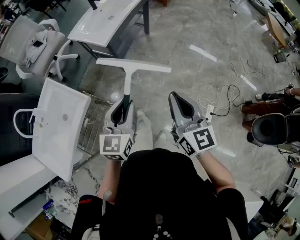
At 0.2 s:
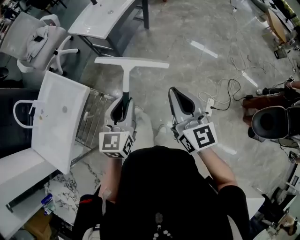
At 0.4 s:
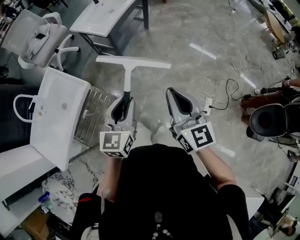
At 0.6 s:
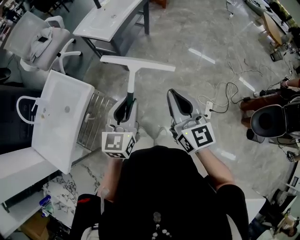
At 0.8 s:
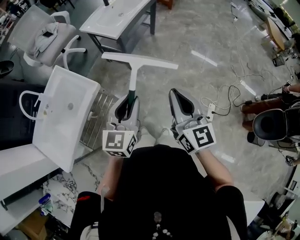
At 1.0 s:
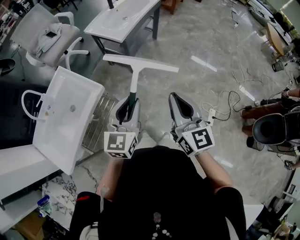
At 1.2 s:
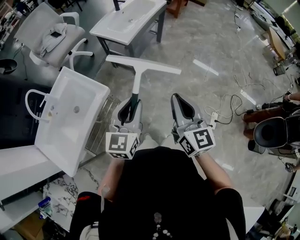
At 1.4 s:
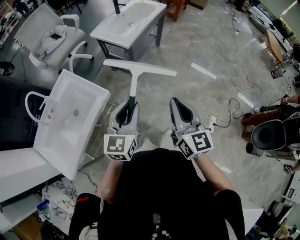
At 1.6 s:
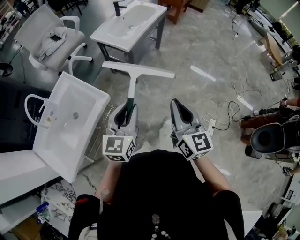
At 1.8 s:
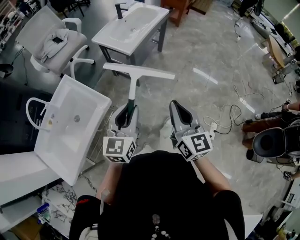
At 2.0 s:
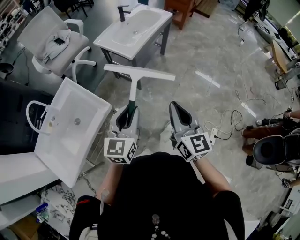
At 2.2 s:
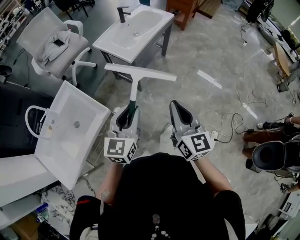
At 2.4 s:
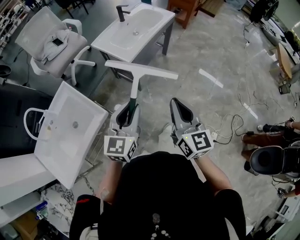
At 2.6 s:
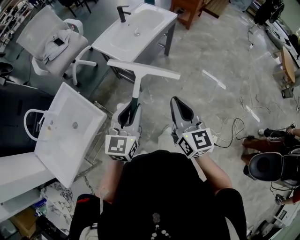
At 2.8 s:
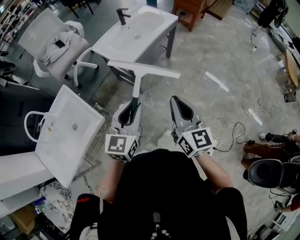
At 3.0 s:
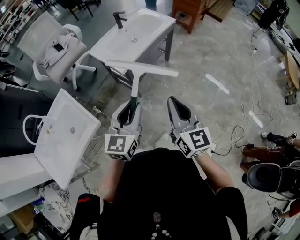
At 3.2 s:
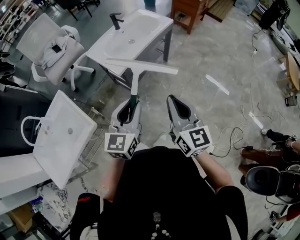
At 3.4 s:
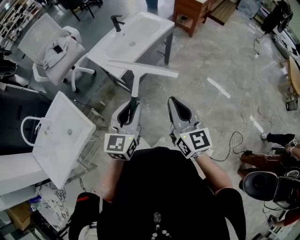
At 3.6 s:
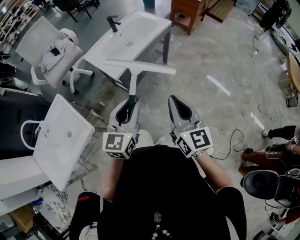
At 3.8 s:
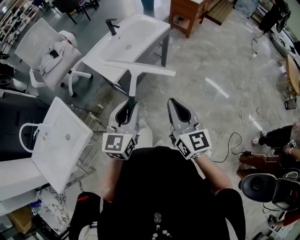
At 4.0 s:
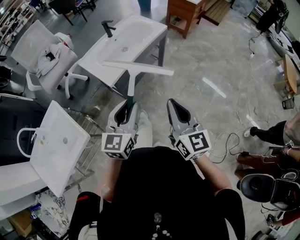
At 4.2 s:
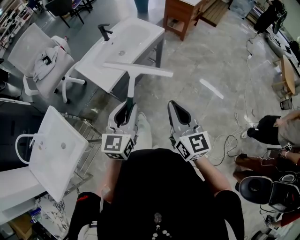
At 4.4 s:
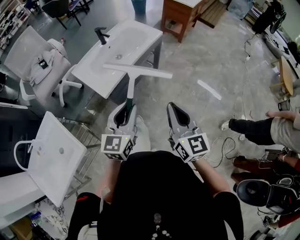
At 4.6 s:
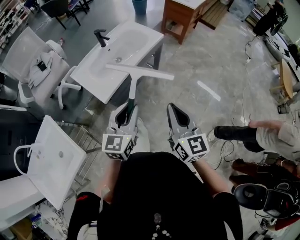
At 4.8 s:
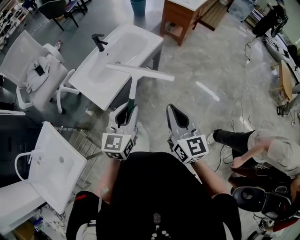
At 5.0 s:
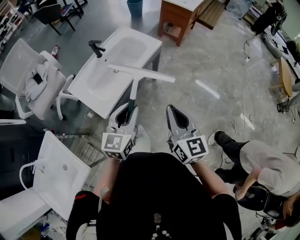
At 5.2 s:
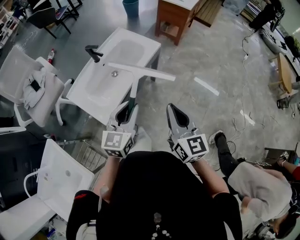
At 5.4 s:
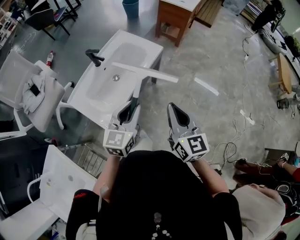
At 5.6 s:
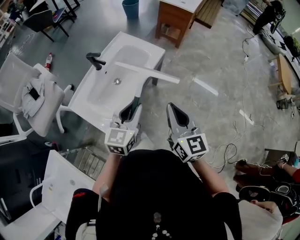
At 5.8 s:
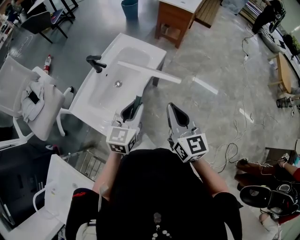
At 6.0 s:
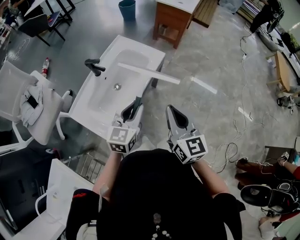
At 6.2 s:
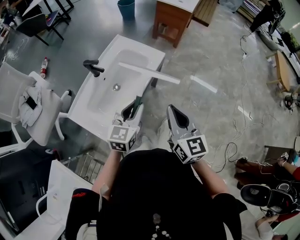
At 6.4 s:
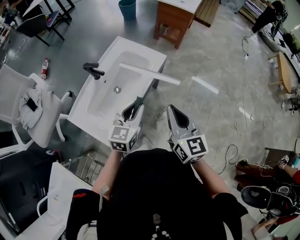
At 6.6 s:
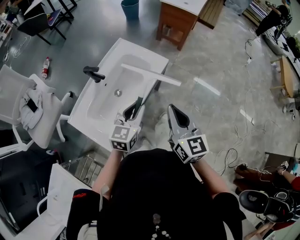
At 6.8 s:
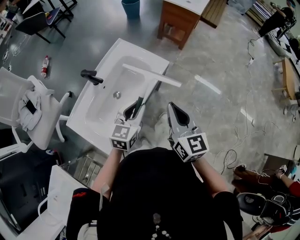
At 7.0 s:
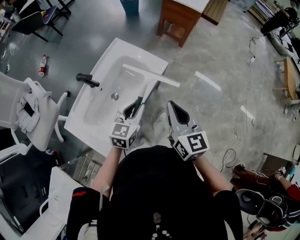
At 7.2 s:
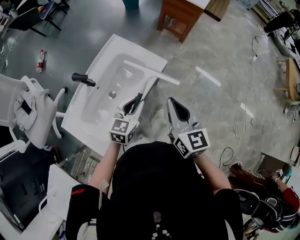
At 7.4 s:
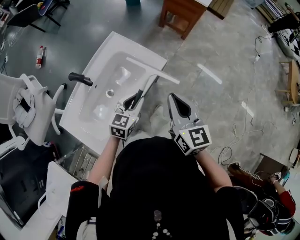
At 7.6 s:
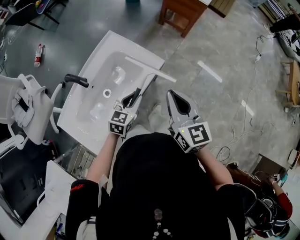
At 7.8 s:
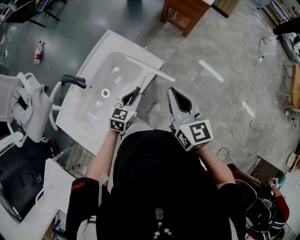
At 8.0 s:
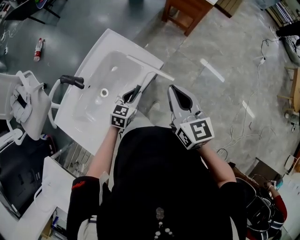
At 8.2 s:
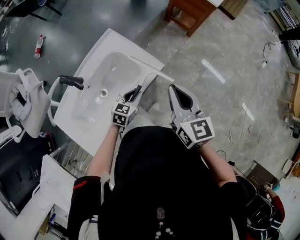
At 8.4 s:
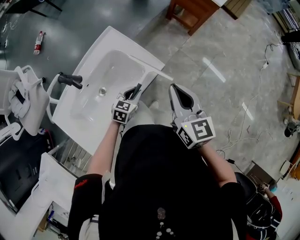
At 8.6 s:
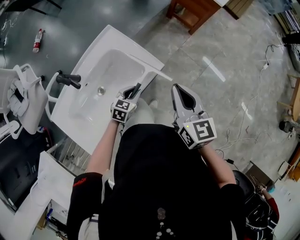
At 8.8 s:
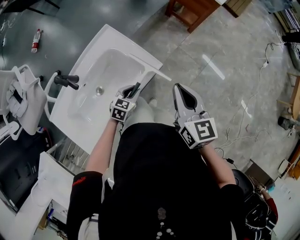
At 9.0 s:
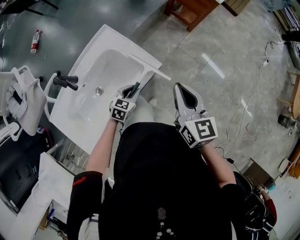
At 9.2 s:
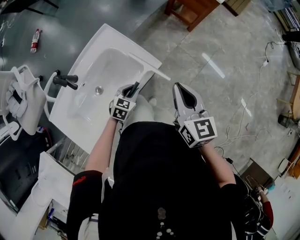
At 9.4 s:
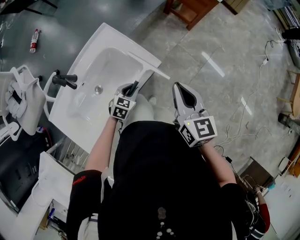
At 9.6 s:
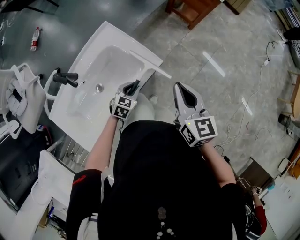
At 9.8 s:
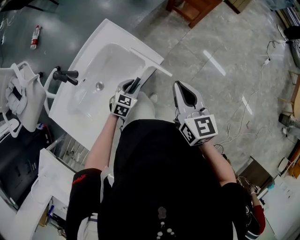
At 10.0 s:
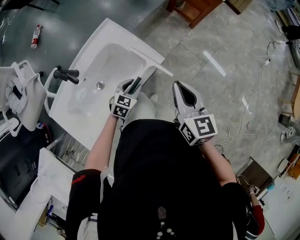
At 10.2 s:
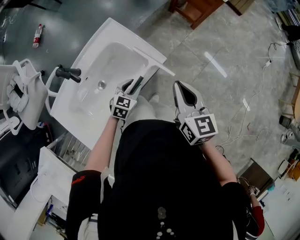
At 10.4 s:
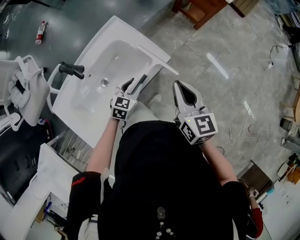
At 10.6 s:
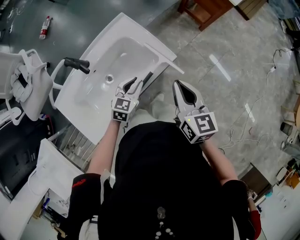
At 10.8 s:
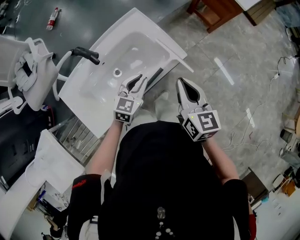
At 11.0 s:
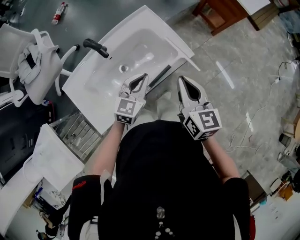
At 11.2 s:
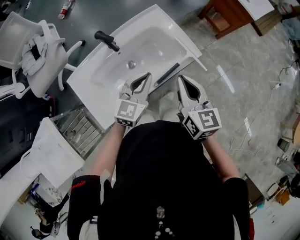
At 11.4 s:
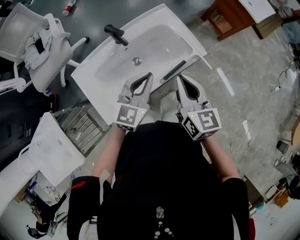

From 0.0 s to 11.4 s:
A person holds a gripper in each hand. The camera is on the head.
From 0.0 s to 1.4 s: The two grippers go about 15 cm to the left and backward.
From 1.4 s to 2.8 s: The right gripper shifts approximately 20 cm forward. Meanwhile the left gripper travels forward and to the right by about 20 cm.
From 2.8 s to 4.2 s: Both grippers move forward and to the right, about 15 cm.
From 4.2 s to 5.6 s: Both grippers move forward, some 30 cm.
From 5.6 s to 7.2 s: The right gripper goes roughly 20 cm forward; the left gripper travels forward and downward by some 25 cm.
From 7.2 s to 8.6 s: The left gripper goes approximately 20 cm downward and forward. Meanwhile the right gripper is displaced forward by roughly 15 cm.
From 8.6 s to 10.0 s: The grippers make only small movements.
From 10.0 s to 11.4 s: The left gripper shifts roughly 25 cm upward and to the left, angles its fingers upward, by approximately 30 degrees, and closes its fingers. The right gripper goes about 20 cm to the left and backward.

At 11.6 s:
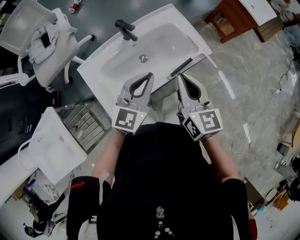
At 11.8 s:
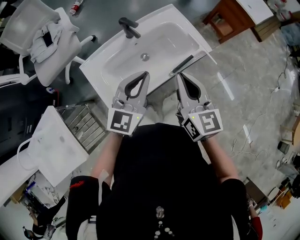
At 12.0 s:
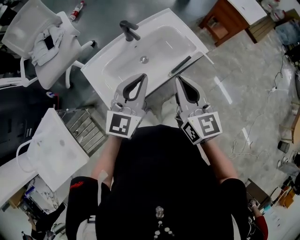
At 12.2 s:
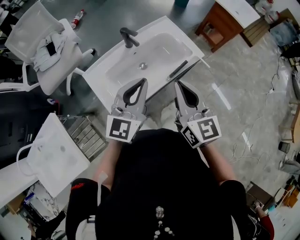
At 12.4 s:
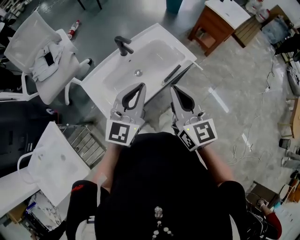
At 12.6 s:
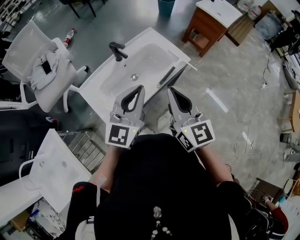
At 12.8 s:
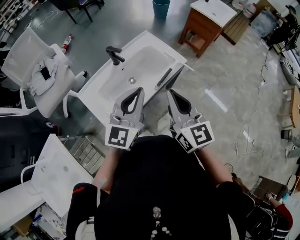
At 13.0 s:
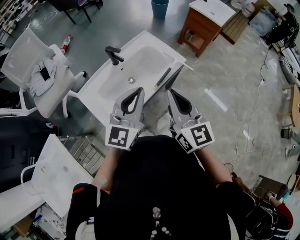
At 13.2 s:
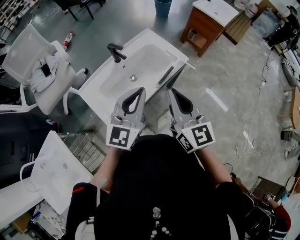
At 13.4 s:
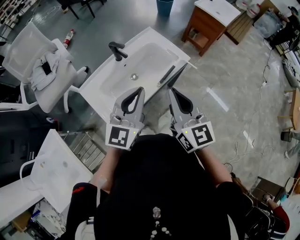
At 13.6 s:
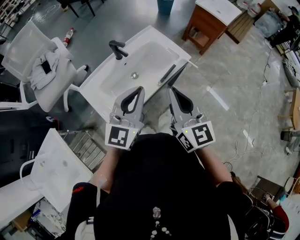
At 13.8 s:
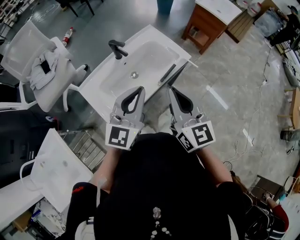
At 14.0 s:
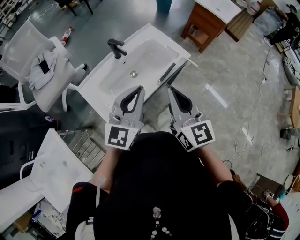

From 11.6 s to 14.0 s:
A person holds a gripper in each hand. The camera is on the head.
From 11.6 s to 12.8 s: The right gripper goes roughly 15 cm backward and upward; the left gripper moves upward and backward, approximately 15 cm.
From 12.8 s to 14.0 s: The grippers make only small movements.

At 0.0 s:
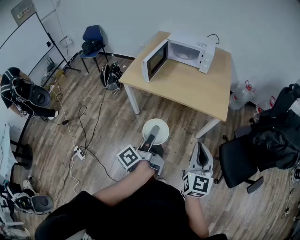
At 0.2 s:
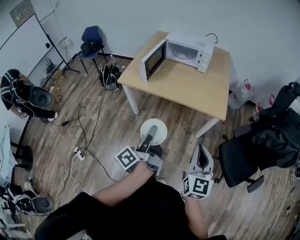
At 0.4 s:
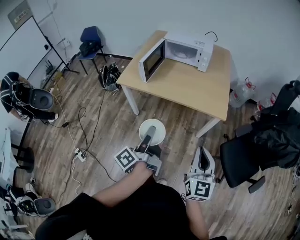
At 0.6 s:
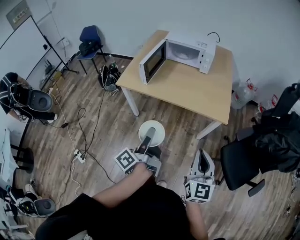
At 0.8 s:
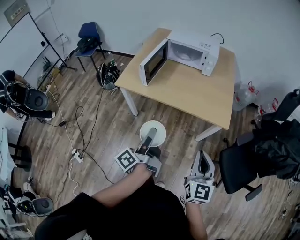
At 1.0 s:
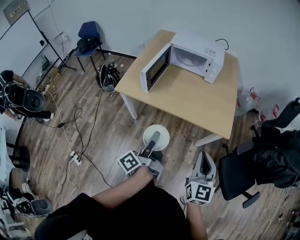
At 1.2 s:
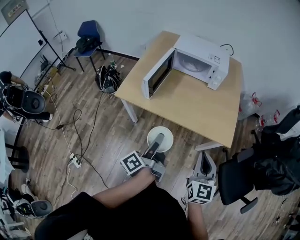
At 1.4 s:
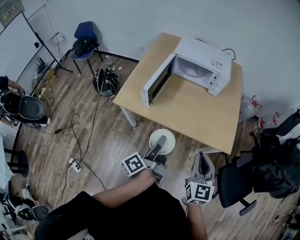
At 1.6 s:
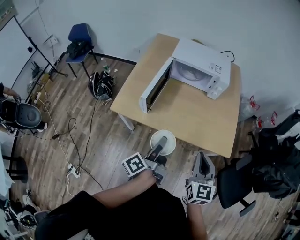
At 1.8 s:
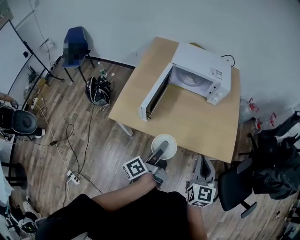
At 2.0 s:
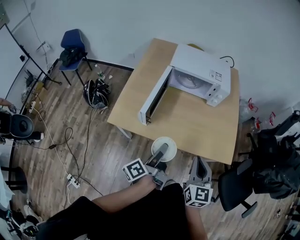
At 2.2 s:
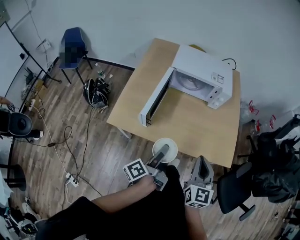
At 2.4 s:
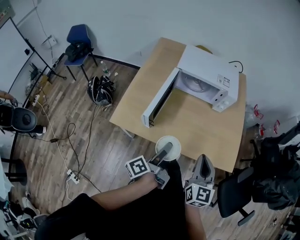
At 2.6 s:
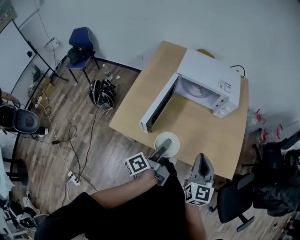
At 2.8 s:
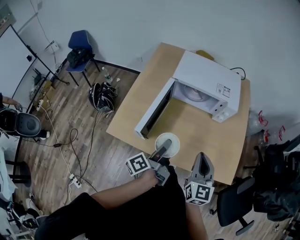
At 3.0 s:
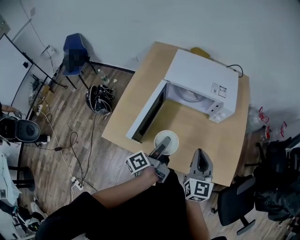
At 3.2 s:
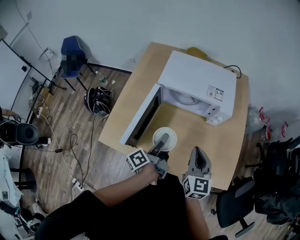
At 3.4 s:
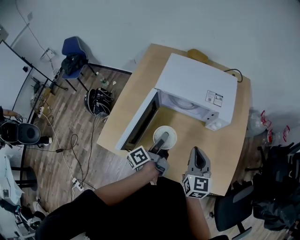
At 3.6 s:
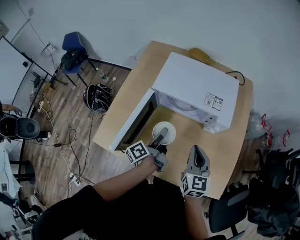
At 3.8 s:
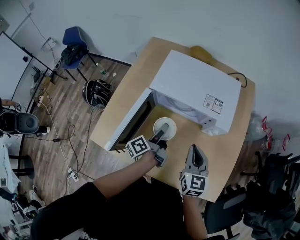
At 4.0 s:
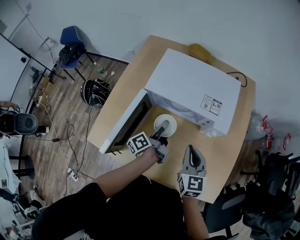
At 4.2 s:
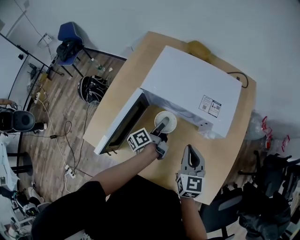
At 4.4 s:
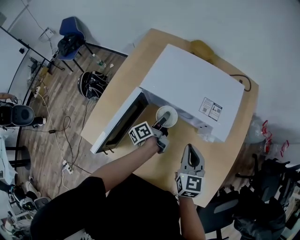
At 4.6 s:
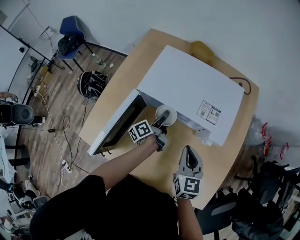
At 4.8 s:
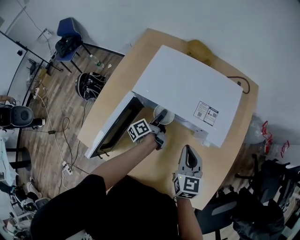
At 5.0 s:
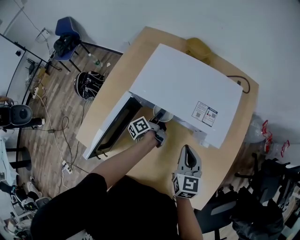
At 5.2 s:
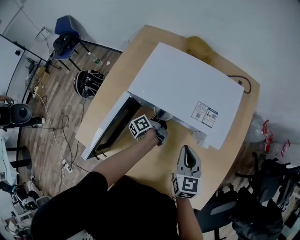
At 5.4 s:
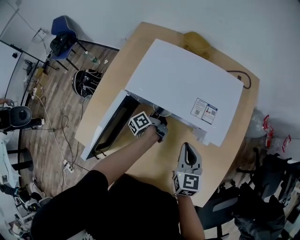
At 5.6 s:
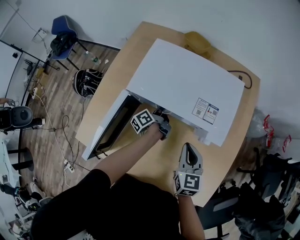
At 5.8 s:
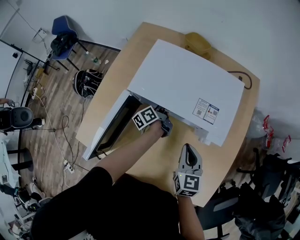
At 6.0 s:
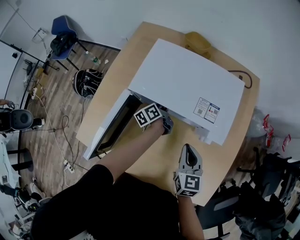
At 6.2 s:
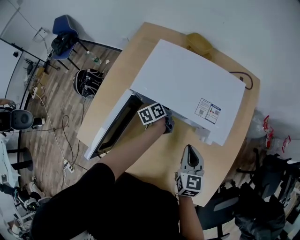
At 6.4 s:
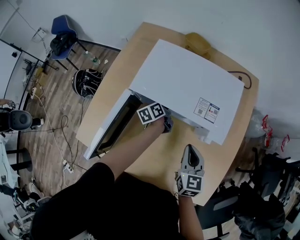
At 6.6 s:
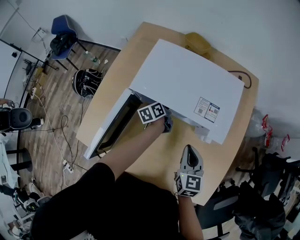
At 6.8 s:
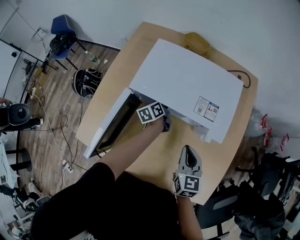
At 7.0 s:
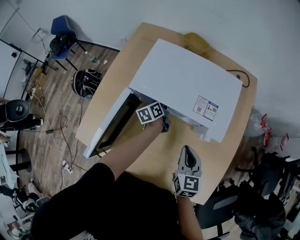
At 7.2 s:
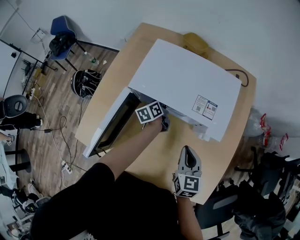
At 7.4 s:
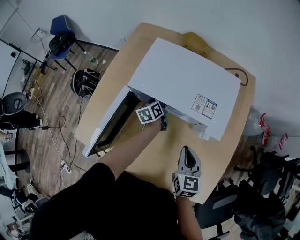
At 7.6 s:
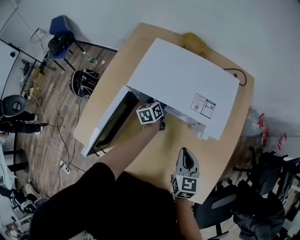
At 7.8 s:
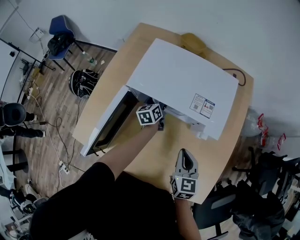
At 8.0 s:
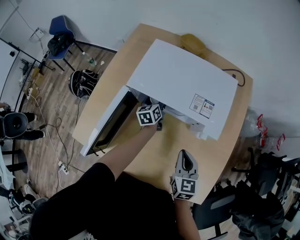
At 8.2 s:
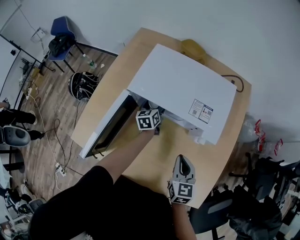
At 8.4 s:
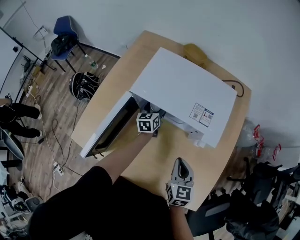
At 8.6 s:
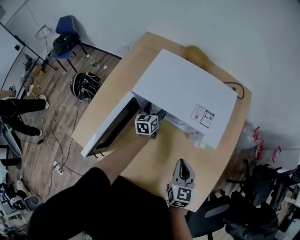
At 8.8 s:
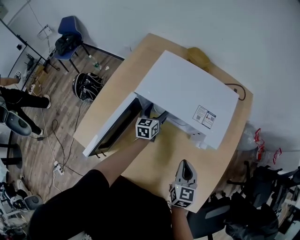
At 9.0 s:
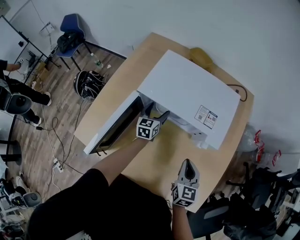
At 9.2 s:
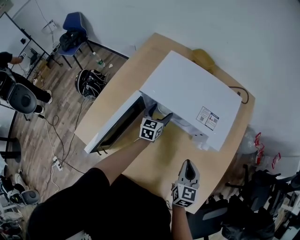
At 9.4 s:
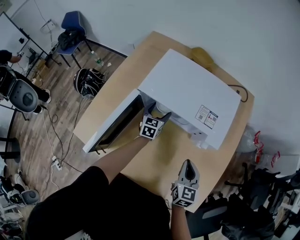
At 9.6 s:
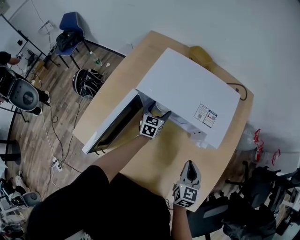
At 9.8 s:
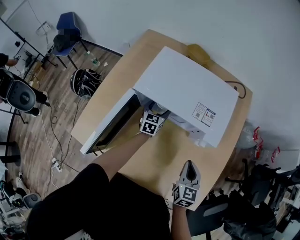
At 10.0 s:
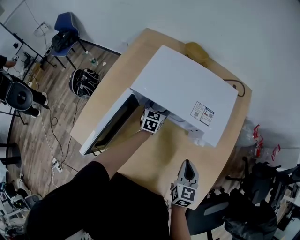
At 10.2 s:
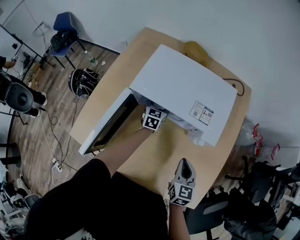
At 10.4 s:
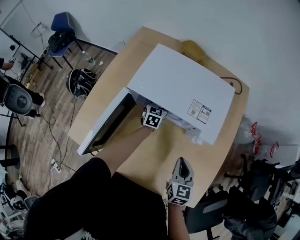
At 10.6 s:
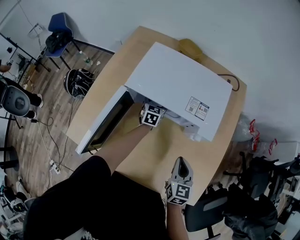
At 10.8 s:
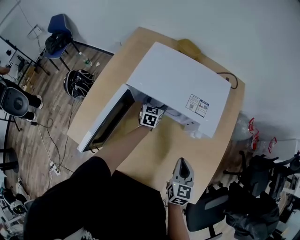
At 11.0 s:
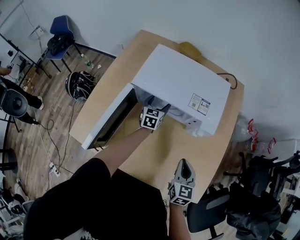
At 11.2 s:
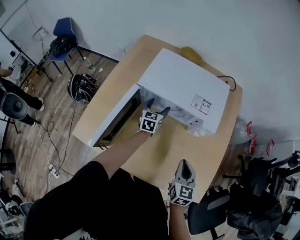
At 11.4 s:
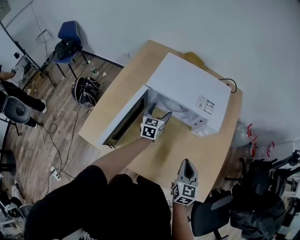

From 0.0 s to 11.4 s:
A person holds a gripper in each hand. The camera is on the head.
From 0.0 s to 1.4 s: The two grippers go some 25 cm forward.
From 1.4 s to 2.8 s: Both grippers travel together forward, some 20 cm.
From 2.8 s to 4.2 s: The left gripper goes approximately 30 cm forward and downward, while the right gripper heads forward, covering approximately 20 cm.
From 4.2 s to 5.6 s: The left gripper shifts roughly 15 cm forward and downward, while the right gripper shifts by roughly 5 cm.
From 5.6 s to 7.2 s: The left gripper rotates some 30 degrees.
From 7.2 s to 8.6 s: The left gripper swivels roughly 30 degrees, and opens up.
From 8.6 s to 10.0 s: The left gripper changes its angle by some 20 degrees.
From 10.0 s to 11.4 s: The left gripper travels backward and upward by some 10 cm, while the right gripper travels backward by approximately 5 cm.
